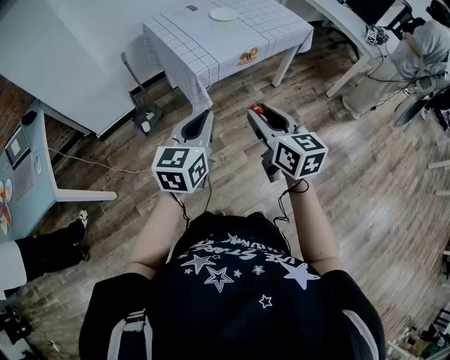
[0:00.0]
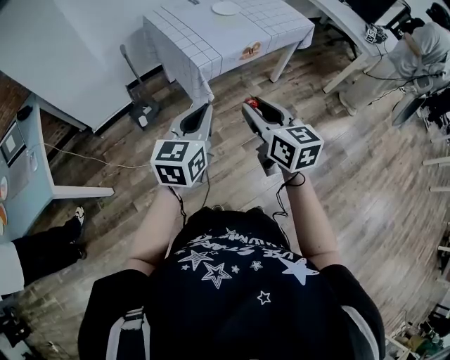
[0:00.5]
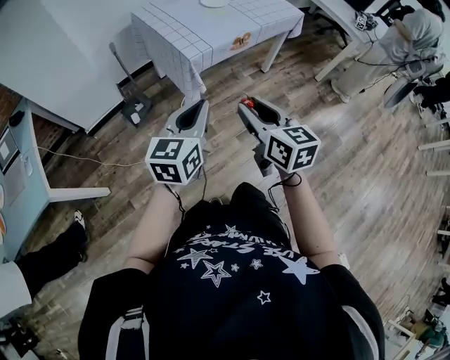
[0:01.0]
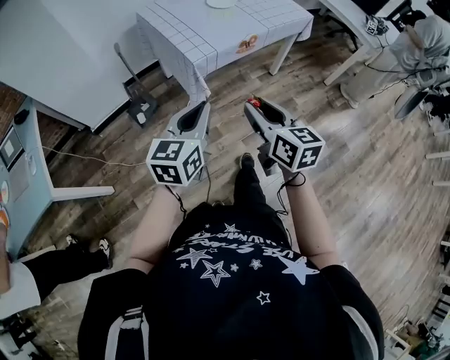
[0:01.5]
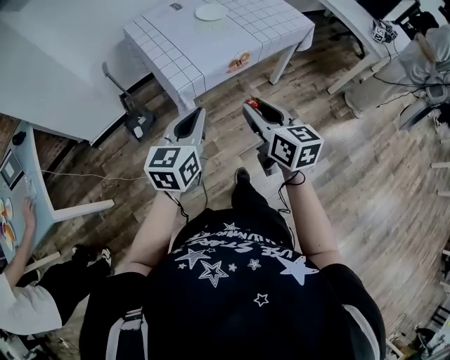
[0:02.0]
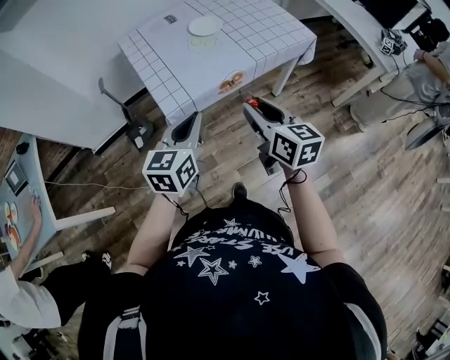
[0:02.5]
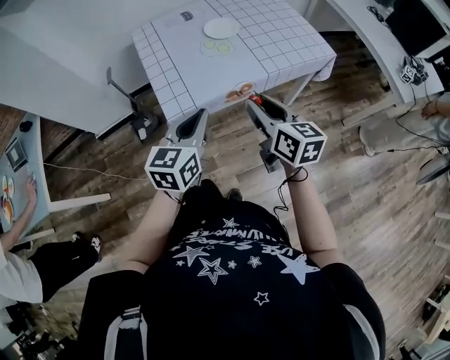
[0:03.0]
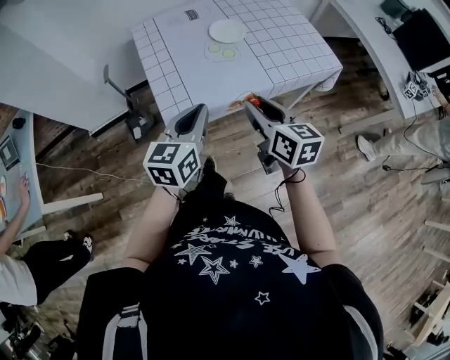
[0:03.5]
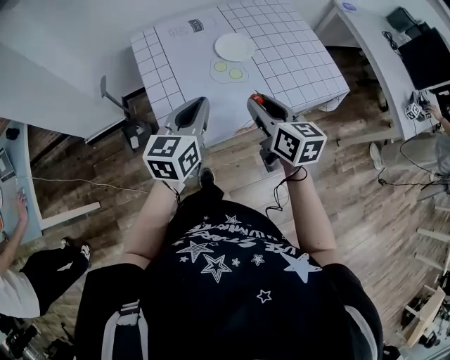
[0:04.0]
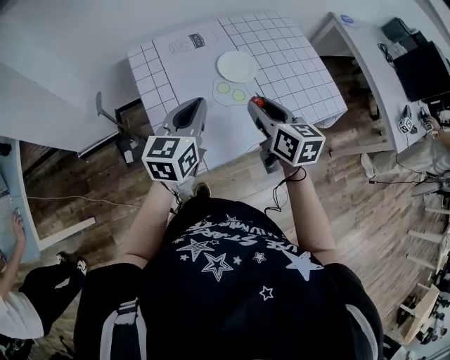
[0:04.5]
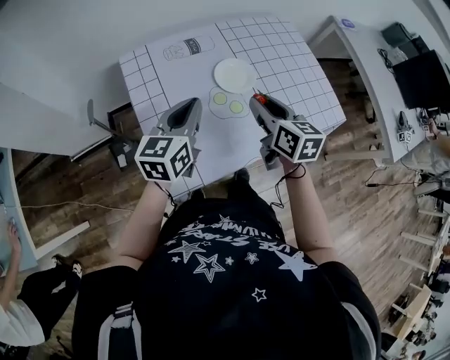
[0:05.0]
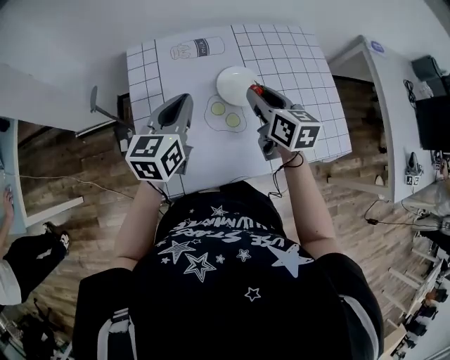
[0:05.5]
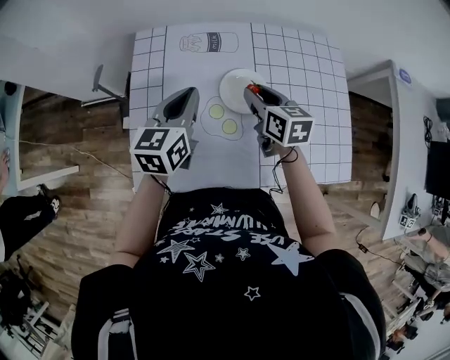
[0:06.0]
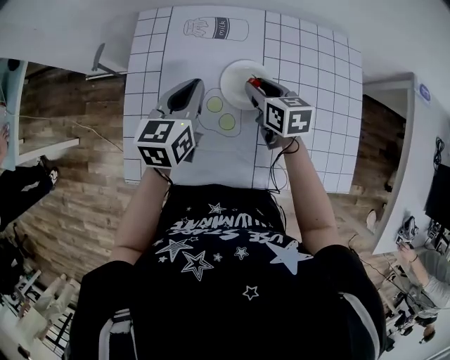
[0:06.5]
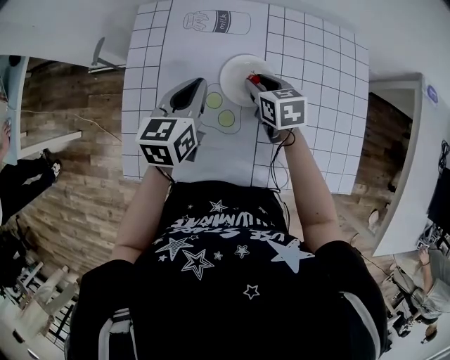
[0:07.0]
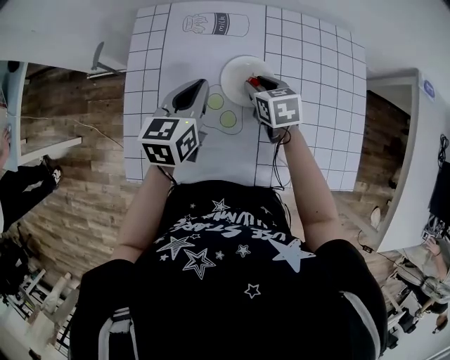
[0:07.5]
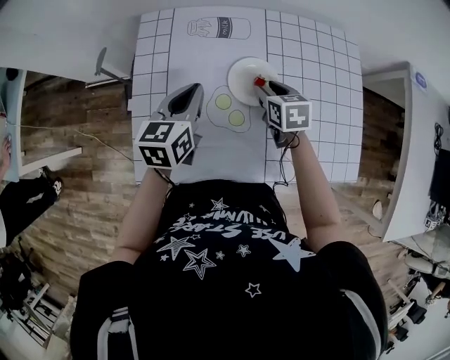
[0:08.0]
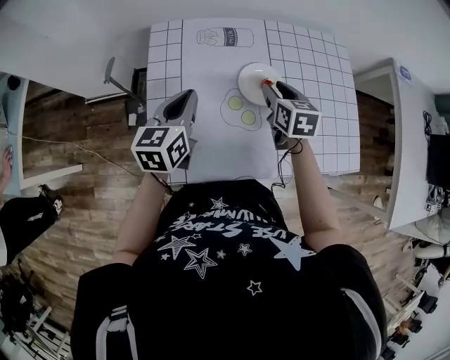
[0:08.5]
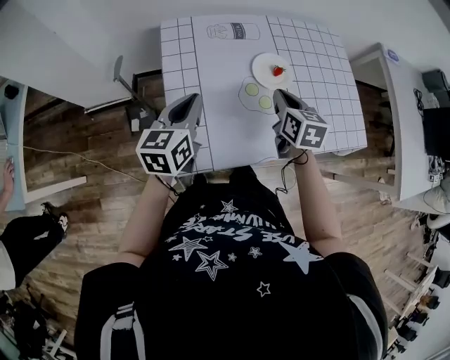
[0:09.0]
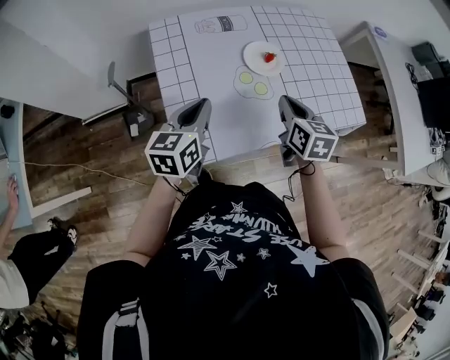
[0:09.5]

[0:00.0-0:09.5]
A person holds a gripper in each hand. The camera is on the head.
0:00.0 to 0:02.0: The grippers both shift forward by about 15 cm.
0:02.0 to 0:04.0: Both grippers move forward, roughly 25 cm.
0:04.0 to 0:05.5: Both grippers move forward, roughly 20 cm.
0:05.5 to 0:07.5: The right gripper heads downward and forward, covering some 15 cm, and swivels roughly 30 degrees. The left gripper goes about 10 cm downward and to the right.
0:07.5 to 0:09.5: The left gripper shifts by roughly 20 cm, and turns by approximately 20 degrees; the right gripper changes place by roughly 25 cm, turns by some 40 degrees, and closes its fingers.

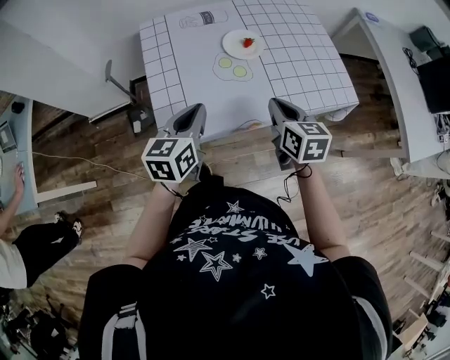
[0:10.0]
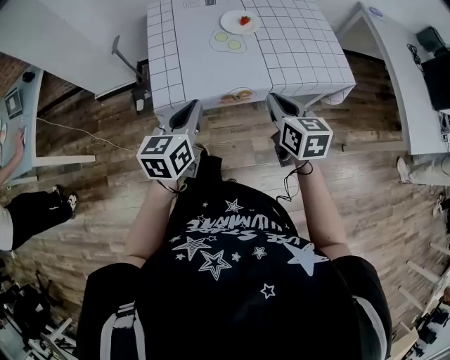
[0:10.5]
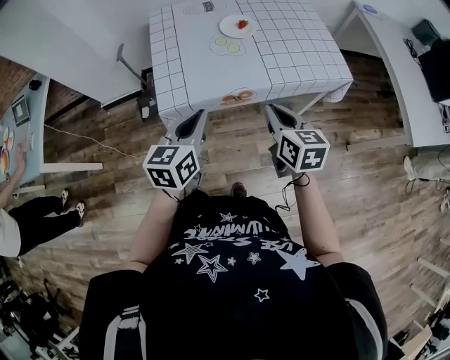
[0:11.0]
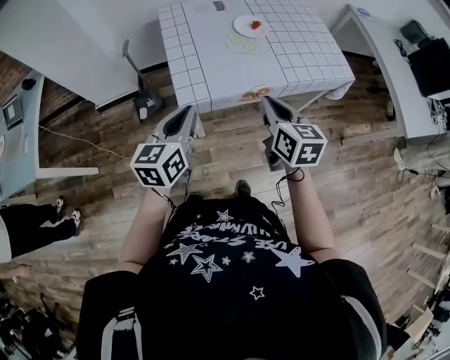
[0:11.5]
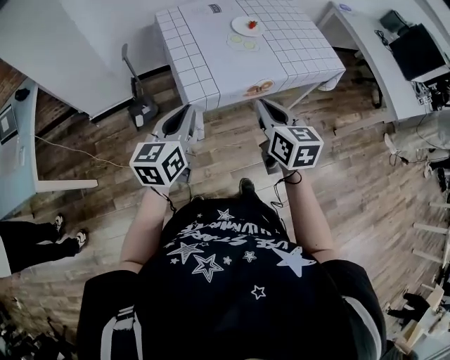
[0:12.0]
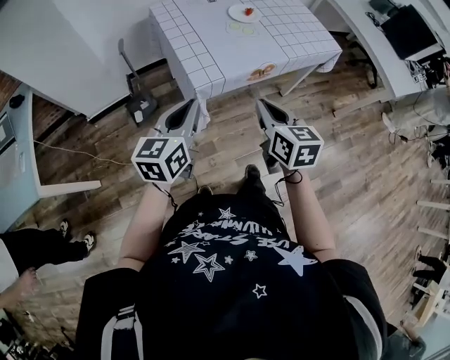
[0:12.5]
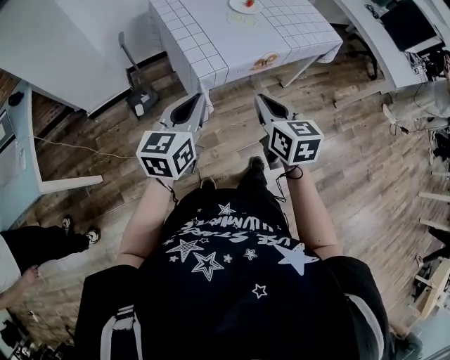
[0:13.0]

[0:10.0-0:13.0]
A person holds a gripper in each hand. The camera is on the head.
0:10.0 to 0:11.5: The two grippers go approximately 15 cm backward and to the left.
0:11.5 to 0:13.0: The left gripper is displaced backward and to the left by approximately 10 cm. Meanwhile the right gripper goes about 15 cm backward and to the left.

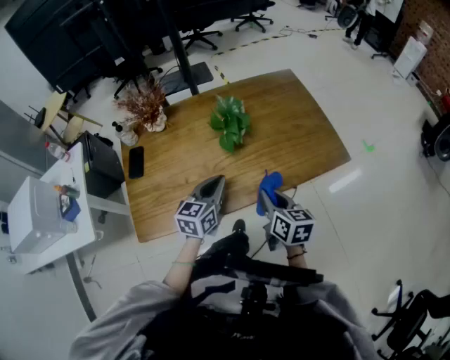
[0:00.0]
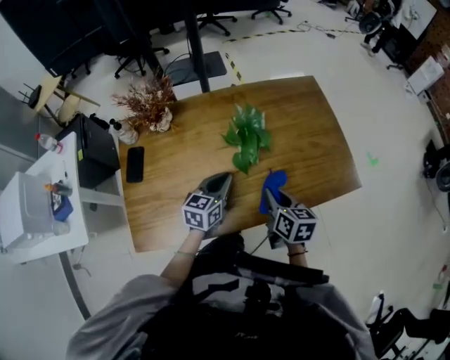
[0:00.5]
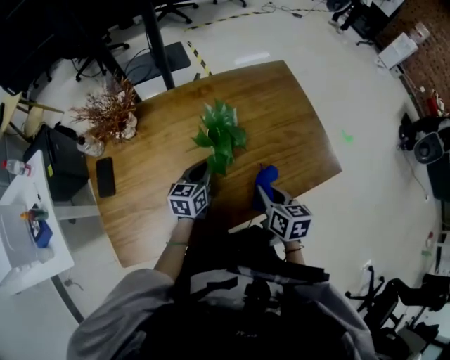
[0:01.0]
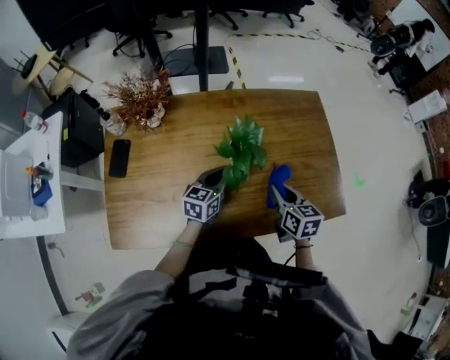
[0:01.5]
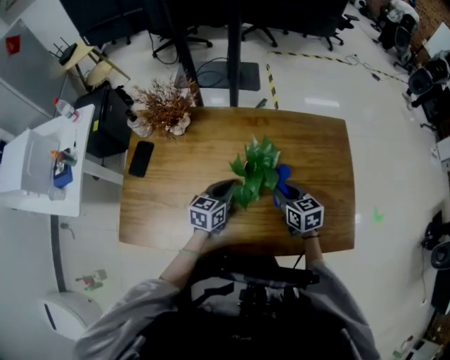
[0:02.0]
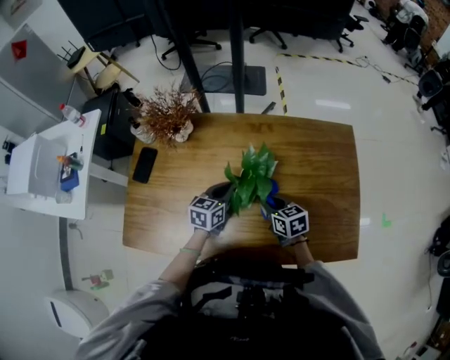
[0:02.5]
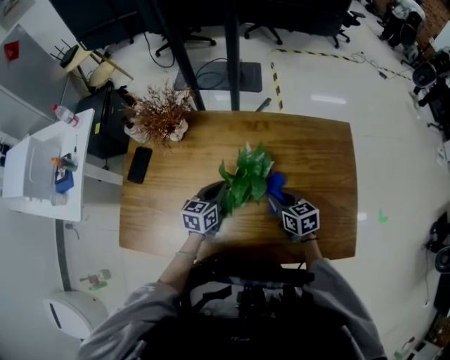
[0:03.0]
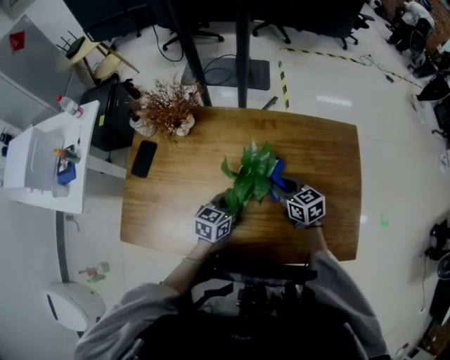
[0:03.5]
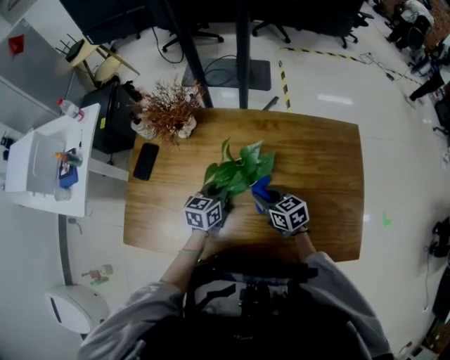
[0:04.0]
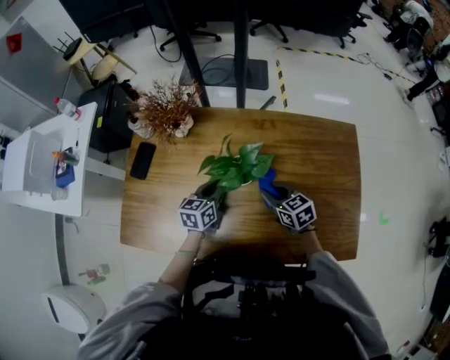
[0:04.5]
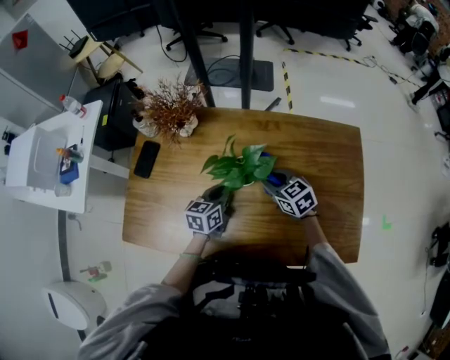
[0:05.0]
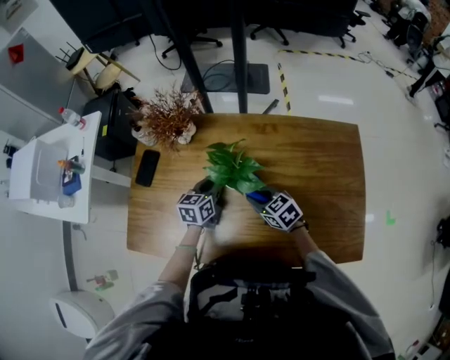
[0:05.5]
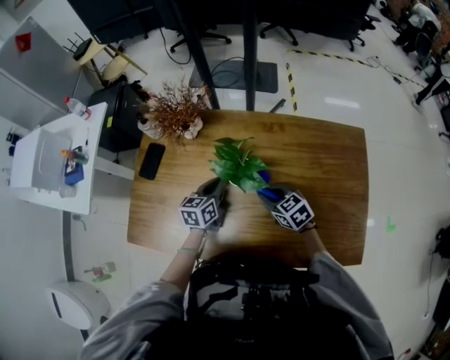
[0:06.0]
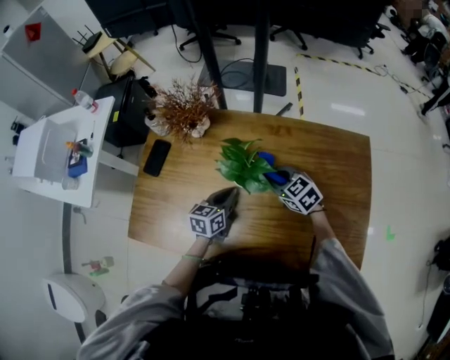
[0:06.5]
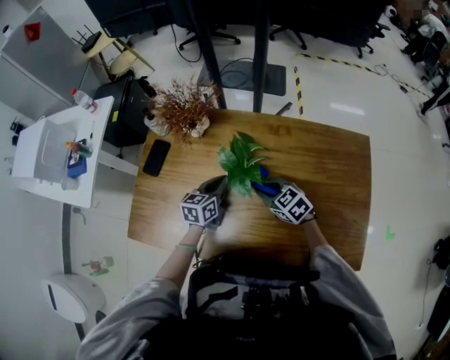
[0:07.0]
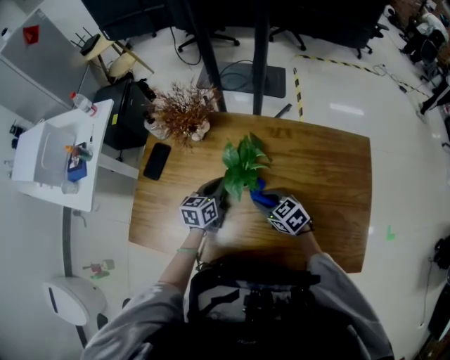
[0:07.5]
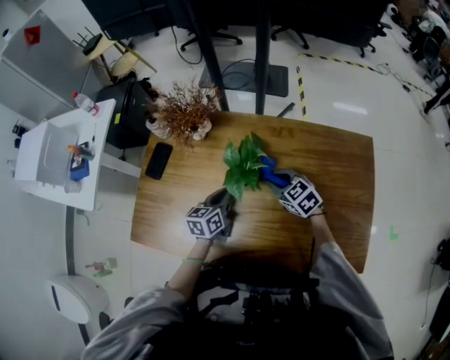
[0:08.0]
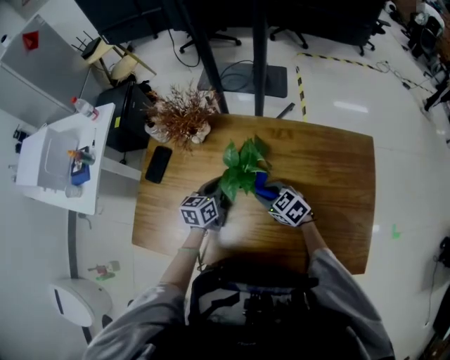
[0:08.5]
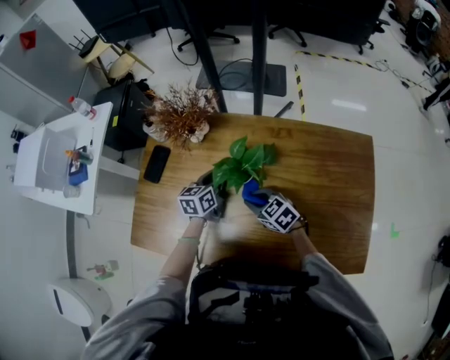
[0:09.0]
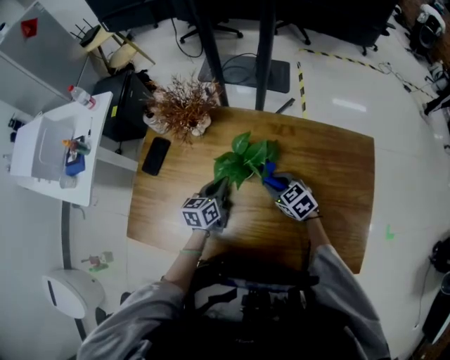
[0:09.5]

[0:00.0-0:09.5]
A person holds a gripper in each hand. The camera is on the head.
0:00.0 to 0:02.0: The right gripper shifts approximately 25 cm forward, and rotates approximately 40 degrees, while the left gripper shifts approximately 20 cm forward and downward.
0:02.0 to 0:04.0: The right gripper swings left and right, approximately 10 cm each way, with 2 reversals; the left gripper ends up roughly 5 cm from where it was.
0:07.5 to 0:09.5: The right gripper goes left and right, roughly 10 cm each way, reversing 2 times. Meanwhile the left gripper travels forward and back again, roughly 5 cm each way.

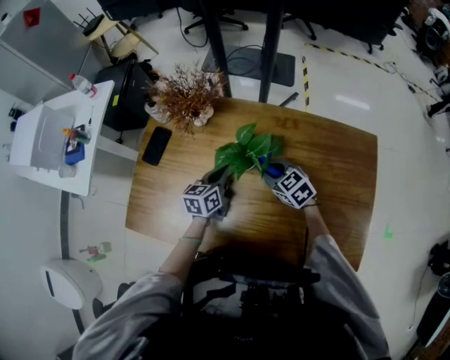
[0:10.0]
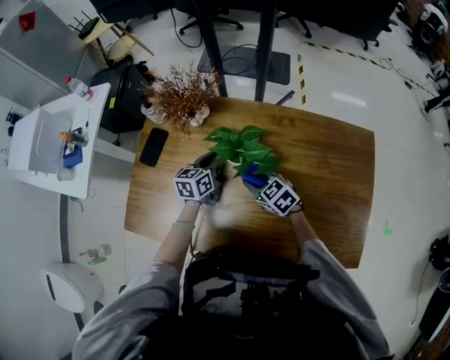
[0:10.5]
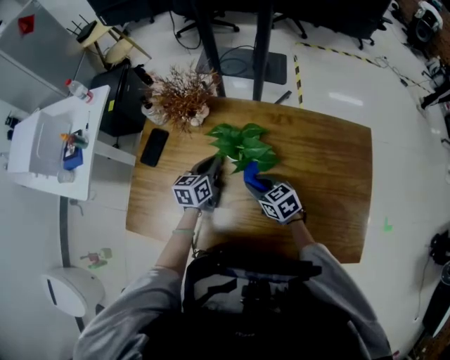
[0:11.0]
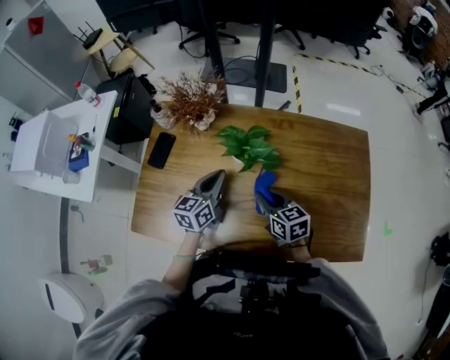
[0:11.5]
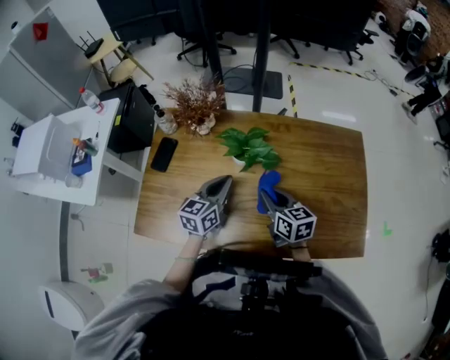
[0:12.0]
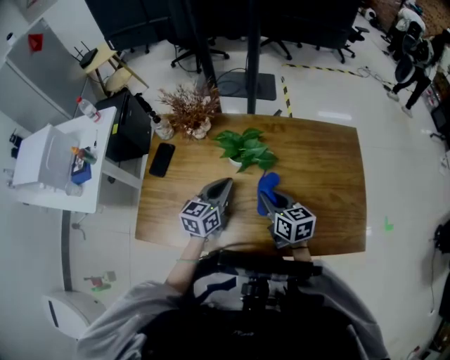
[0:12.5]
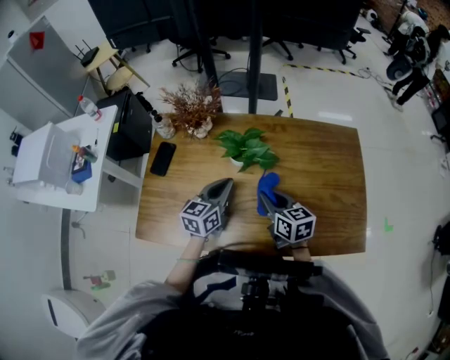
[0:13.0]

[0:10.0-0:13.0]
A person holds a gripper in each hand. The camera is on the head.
0:10.0 to 0:11.5: The right gripper shifts some 10 cm backward, and changes its angle by about 30 degrees; the left gripper goes roughly 10 cm upward.
0:11.5 to 0:13.0: The grippers move only a little.

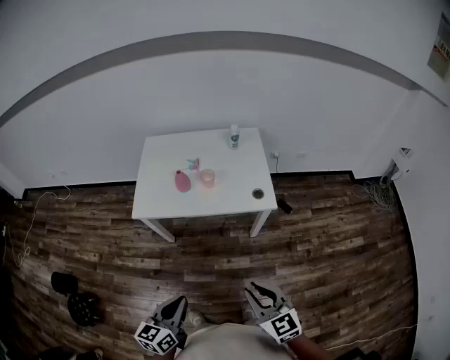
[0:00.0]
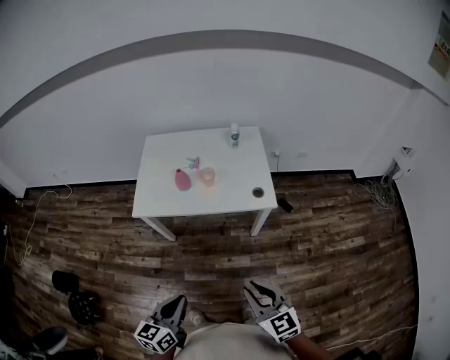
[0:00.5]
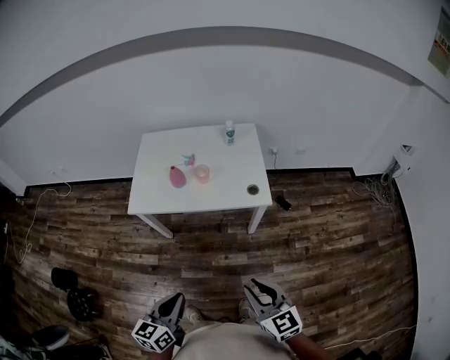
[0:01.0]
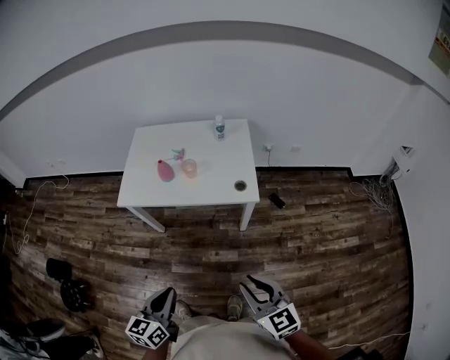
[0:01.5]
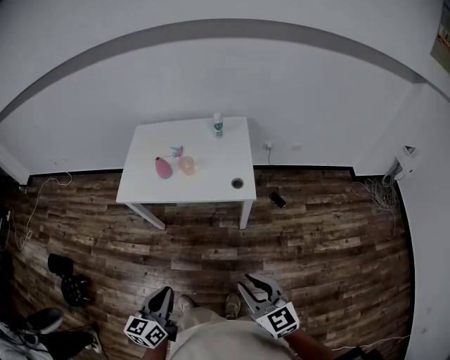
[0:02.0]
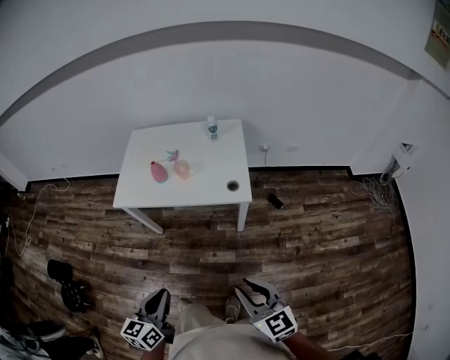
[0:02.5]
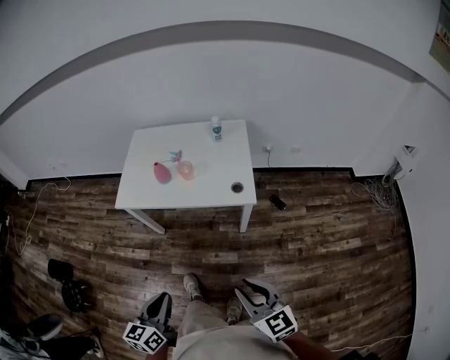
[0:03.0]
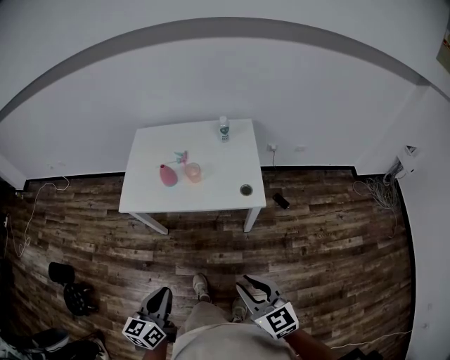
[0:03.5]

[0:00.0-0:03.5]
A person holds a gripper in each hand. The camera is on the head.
0:00.0 to 0:02.0: The grippers both shift to the right by approximately 15 cm.
0:02.0 to 0:03.5: The grippers both shift forward and to the left by about 10 cm.
